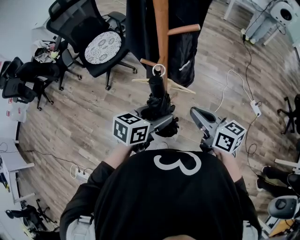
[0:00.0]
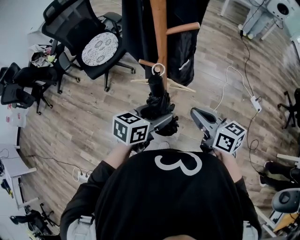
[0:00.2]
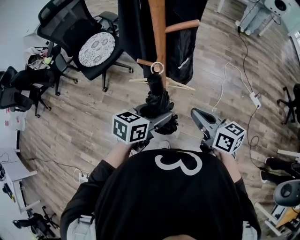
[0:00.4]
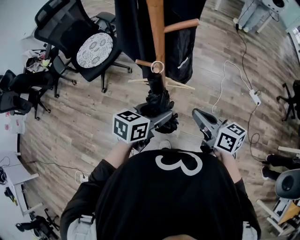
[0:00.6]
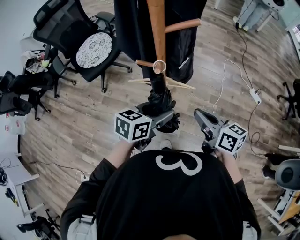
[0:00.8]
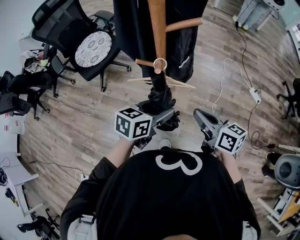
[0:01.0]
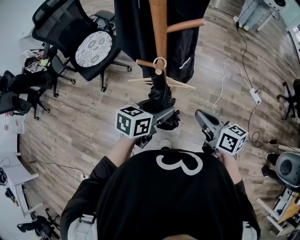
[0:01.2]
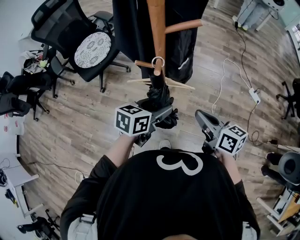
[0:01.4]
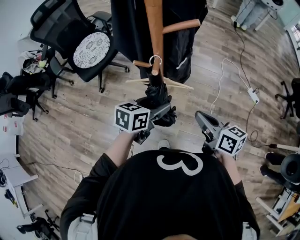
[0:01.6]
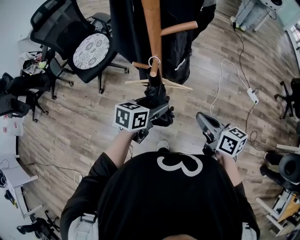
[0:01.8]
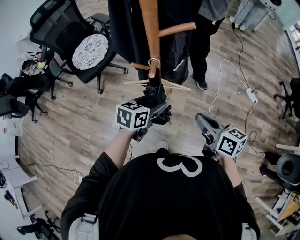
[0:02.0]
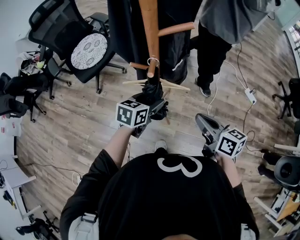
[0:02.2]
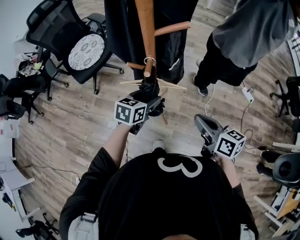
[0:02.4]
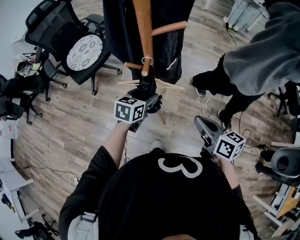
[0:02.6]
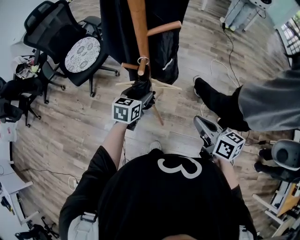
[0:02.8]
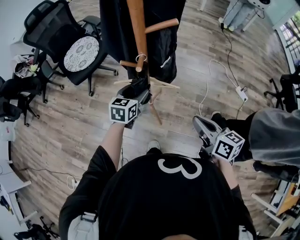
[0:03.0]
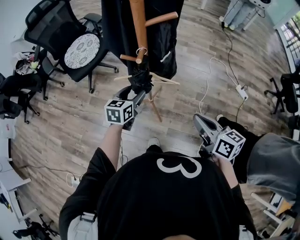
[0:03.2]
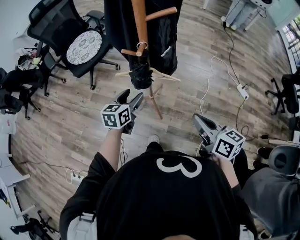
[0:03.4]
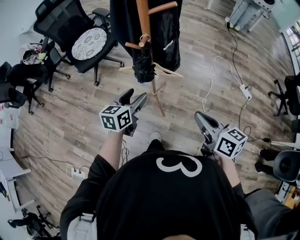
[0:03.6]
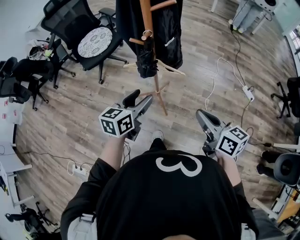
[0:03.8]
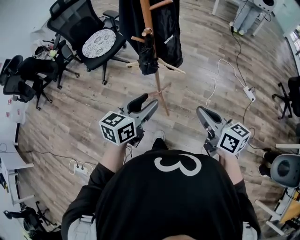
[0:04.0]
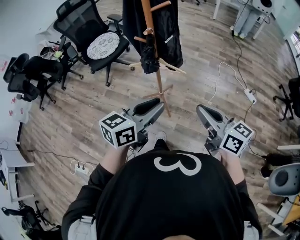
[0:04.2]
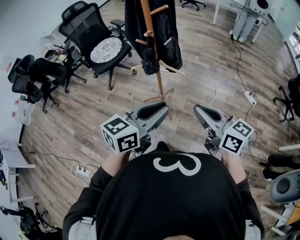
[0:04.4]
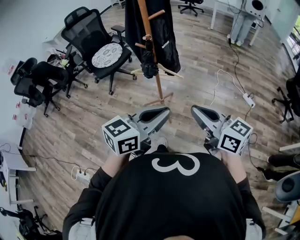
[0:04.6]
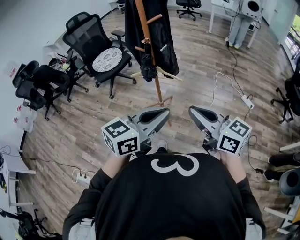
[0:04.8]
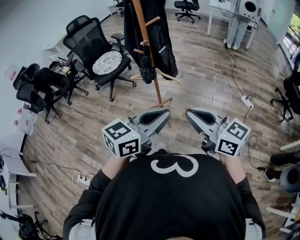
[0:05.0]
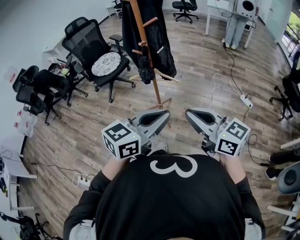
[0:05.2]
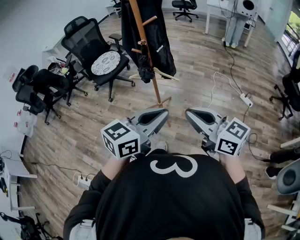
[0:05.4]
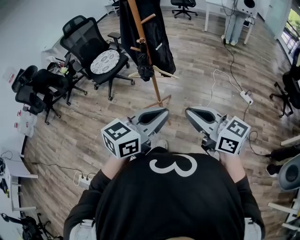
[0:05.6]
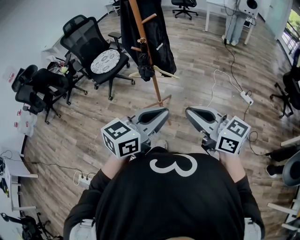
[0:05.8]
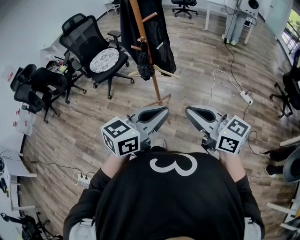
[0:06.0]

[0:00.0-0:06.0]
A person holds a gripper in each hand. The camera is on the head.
0:00.0 to 0:01.6: The right gripper moves downward, roughly 5 cm, while the left gripper goes some 10 cm forward and downward.
0:01.6 to 0:03.0: The right gripper changes place by approximately 5 cm. Meanwhile the left gripper travels forward by approximately 5 cm, and swivels approximately 20 degrees.
0:03.0 to 0:04.4: The left gripper shifts about 40 cm backward and upward, turns by some 30 degrees, and closes. The right gripper goes roughly 25 cm backward and upward, and swivels some 30 degrees.
0:04.4 to 0:06.0: The two grippers go approximately 5 cm backward.

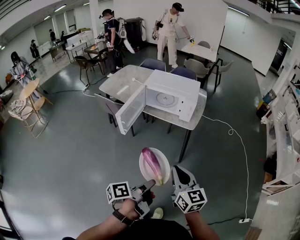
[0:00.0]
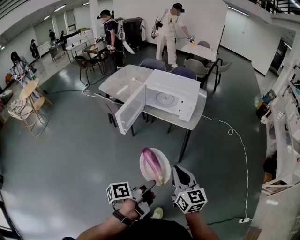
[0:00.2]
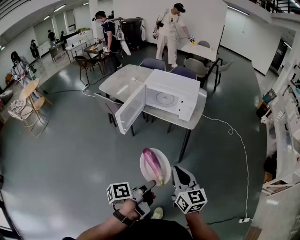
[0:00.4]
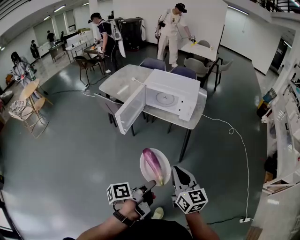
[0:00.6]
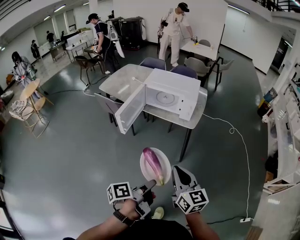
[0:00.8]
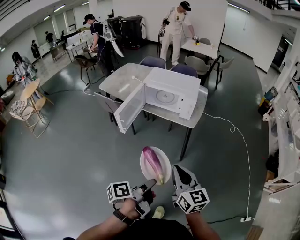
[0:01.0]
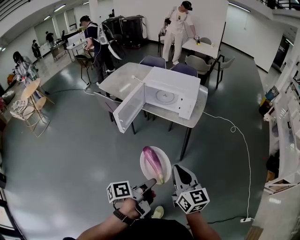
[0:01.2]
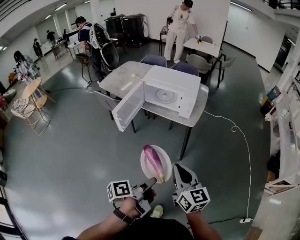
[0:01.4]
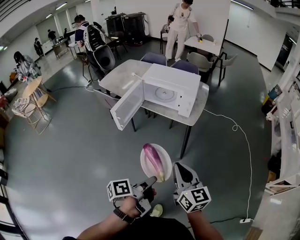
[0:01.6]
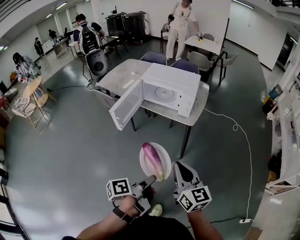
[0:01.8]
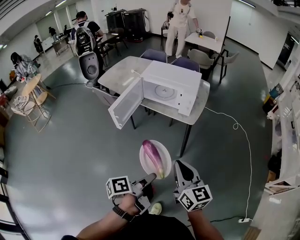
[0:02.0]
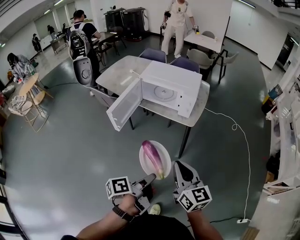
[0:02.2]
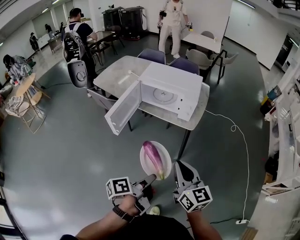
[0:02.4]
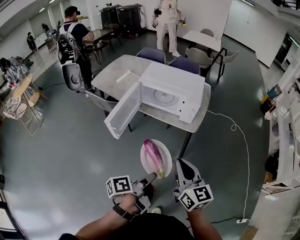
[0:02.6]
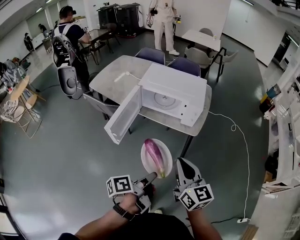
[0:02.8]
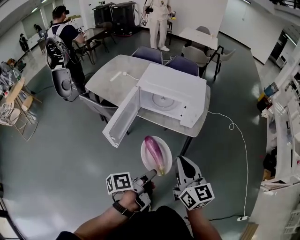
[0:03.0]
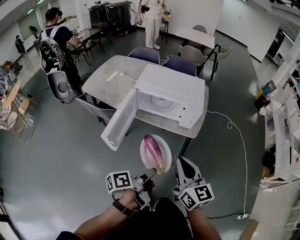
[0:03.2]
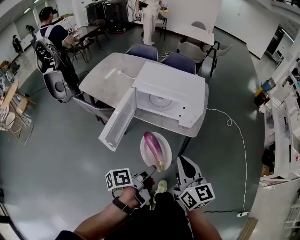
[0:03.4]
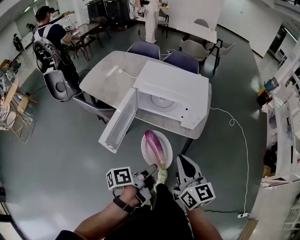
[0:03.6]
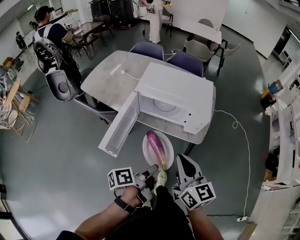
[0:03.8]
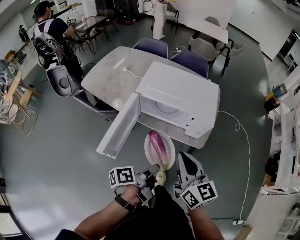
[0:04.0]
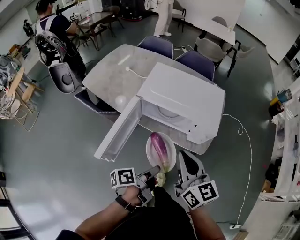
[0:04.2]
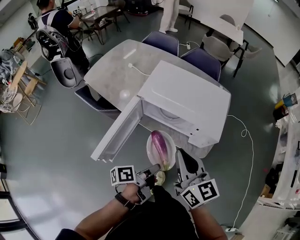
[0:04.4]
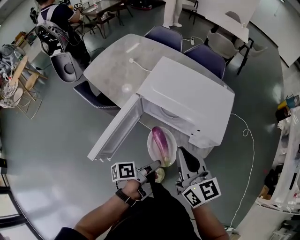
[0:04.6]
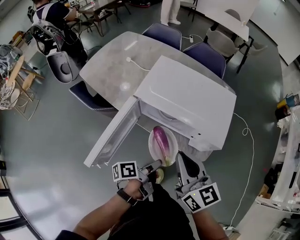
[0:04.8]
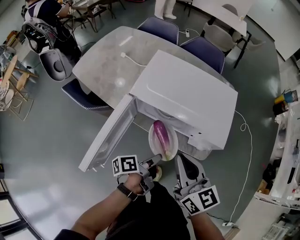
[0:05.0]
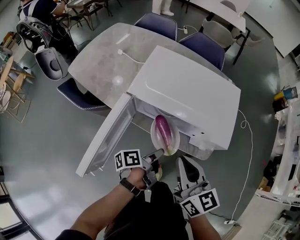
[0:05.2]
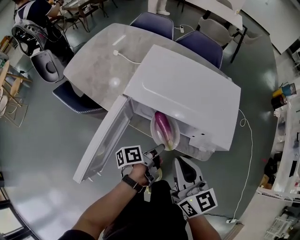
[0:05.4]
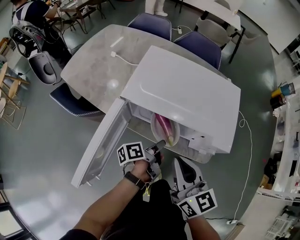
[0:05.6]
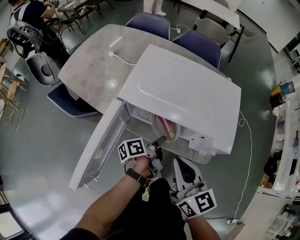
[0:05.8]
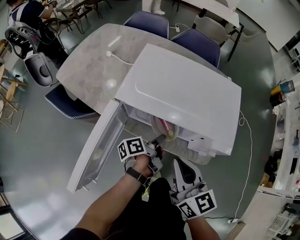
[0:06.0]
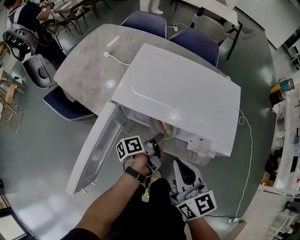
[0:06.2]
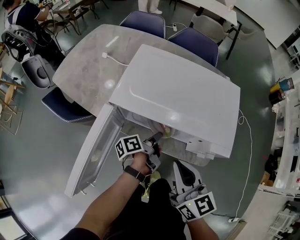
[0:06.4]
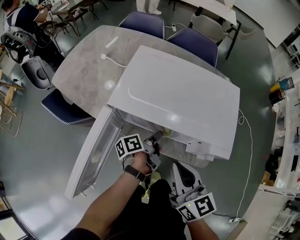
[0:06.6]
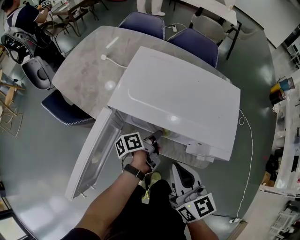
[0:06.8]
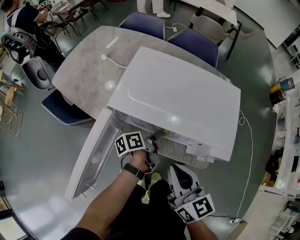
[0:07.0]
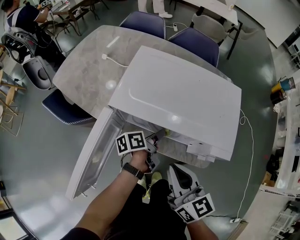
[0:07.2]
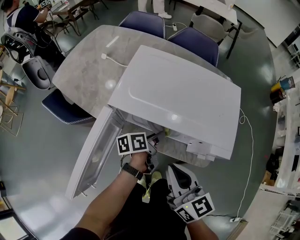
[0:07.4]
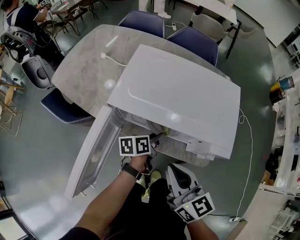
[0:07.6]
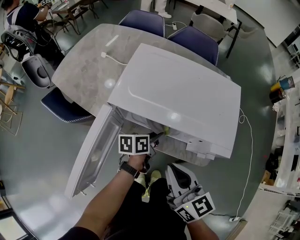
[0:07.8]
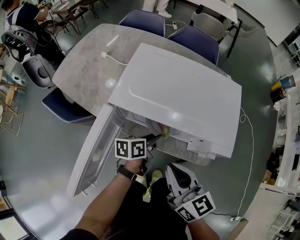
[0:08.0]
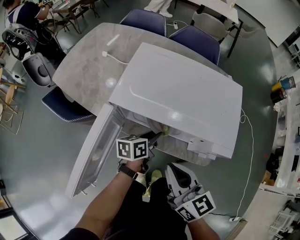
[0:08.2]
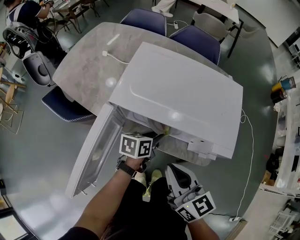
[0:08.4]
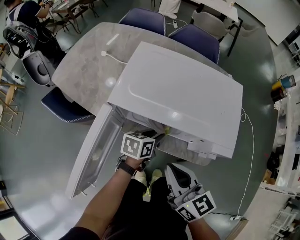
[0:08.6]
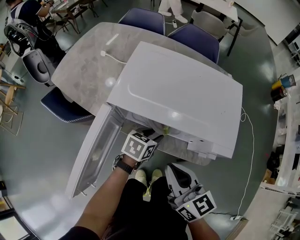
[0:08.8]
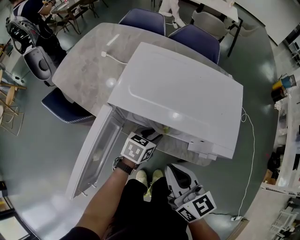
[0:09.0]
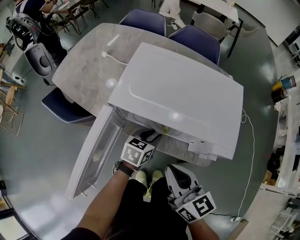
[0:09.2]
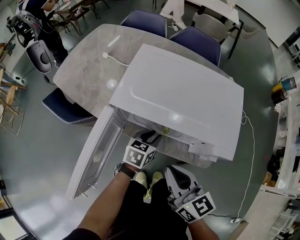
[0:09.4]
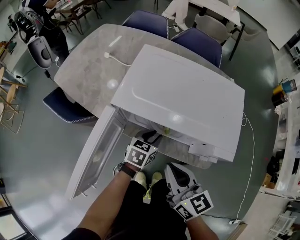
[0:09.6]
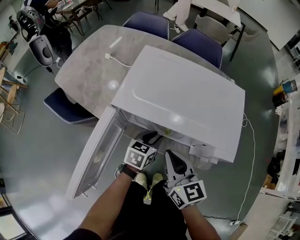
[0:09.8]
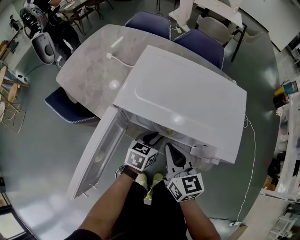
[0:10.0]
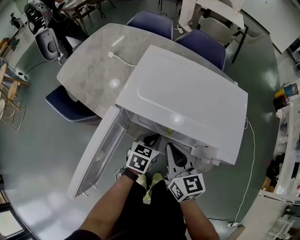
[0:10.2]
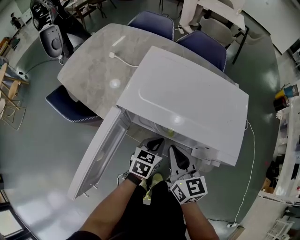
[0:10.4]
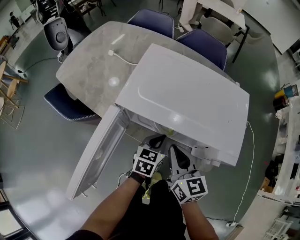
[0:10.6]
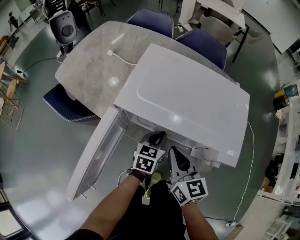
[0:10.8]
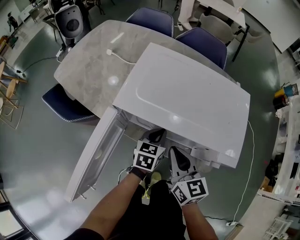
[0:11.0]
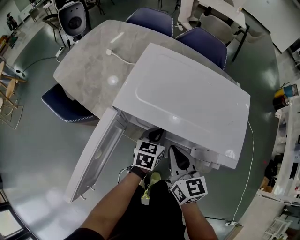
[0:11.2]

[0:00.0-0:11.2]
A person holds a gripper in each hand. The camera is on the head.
0:00.0 to 0:01.6: The right gripper shifts by roughly 5 cm. Meanwhile the left gripper shifts by approximately 5 cm.
0:01.6 to 0:03.2: The grippers both shift forward and to the left by about 25 cm.
0:03.2 to 0:04.8: The grippers both shift forward by roughly 25 cm.
0:04.8 to 0:06.4: The left gripper shifts some 20 cm forward and downward. The right gripper shifts about 10 cm downward.
0:06.4 to 0:08.0: The left gripper swivels approximately 40 degrees.
0:08.0 to 0:09.6: The left gripper changes its angle by approximately 40 degrees.
0:09.6 to 0:11.2: The right gripper heads forward, covering some 5 cm. The left gripper closes its fingers.

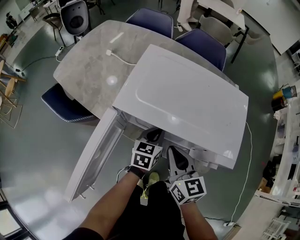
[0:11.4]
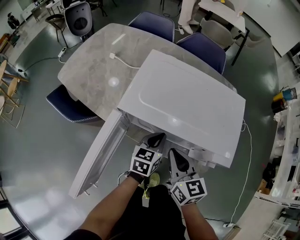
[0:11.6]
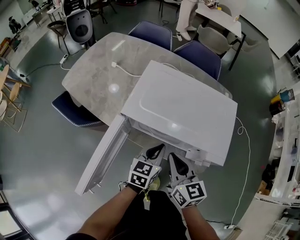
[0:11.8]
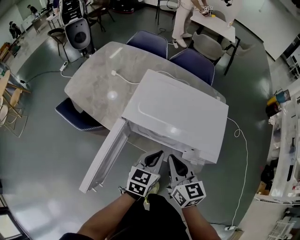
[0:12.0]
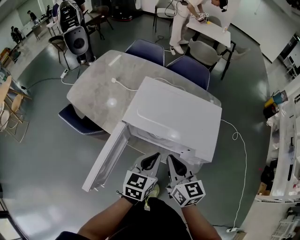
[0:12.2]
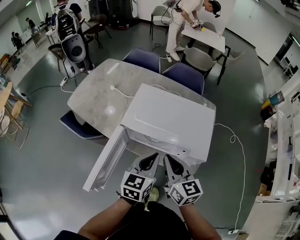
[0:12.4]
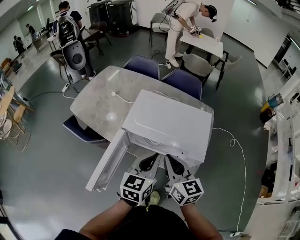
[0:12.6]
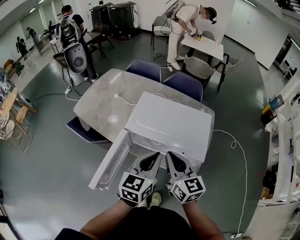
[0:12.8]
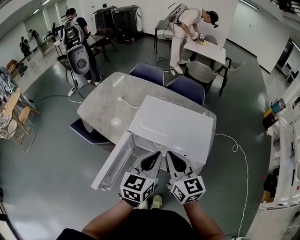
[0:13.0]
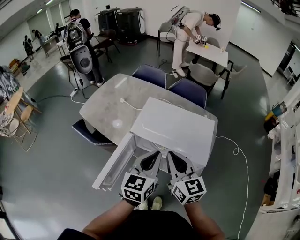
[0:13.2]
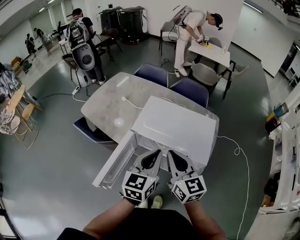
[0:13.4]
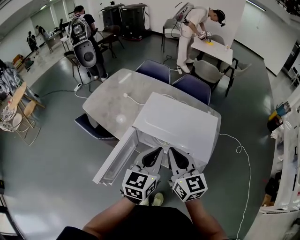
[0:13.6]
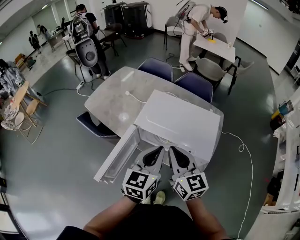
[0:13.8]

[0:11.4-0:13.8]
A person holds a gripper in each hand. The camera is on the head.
0:11.4 to 0:12.6: The left gripper heads upward and backward, covering some 30 cm. Meanwhile the right gripper is displaced upward by about 20 cm.
0:12.6 to 0:13.8: Both grippers travel together upward, some 5 cm.

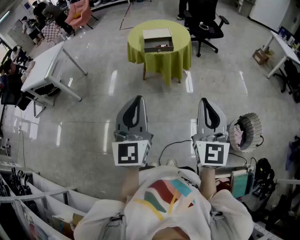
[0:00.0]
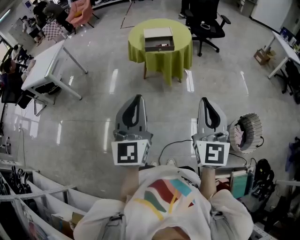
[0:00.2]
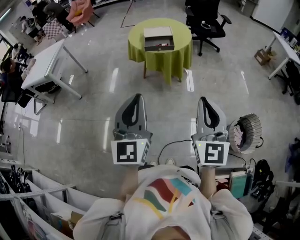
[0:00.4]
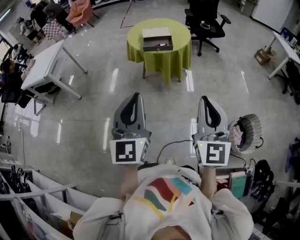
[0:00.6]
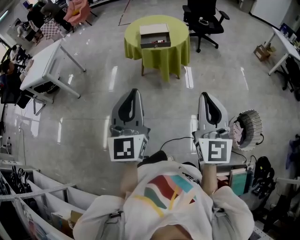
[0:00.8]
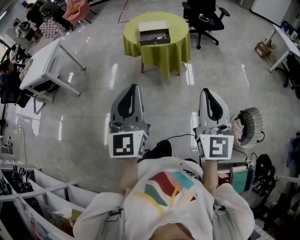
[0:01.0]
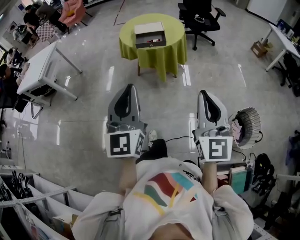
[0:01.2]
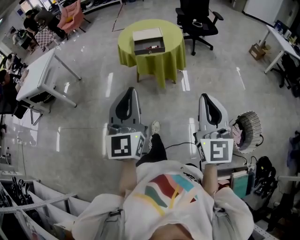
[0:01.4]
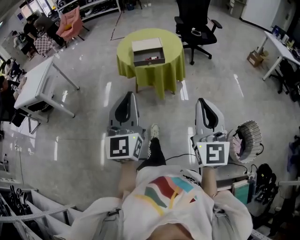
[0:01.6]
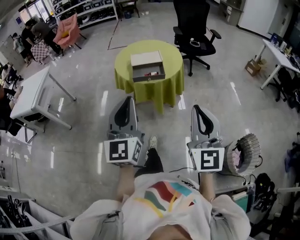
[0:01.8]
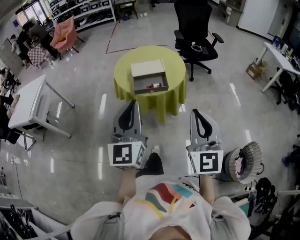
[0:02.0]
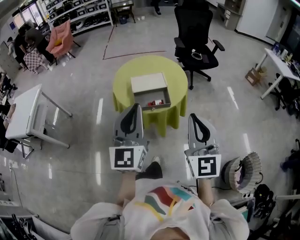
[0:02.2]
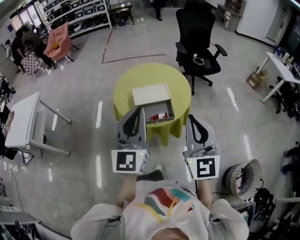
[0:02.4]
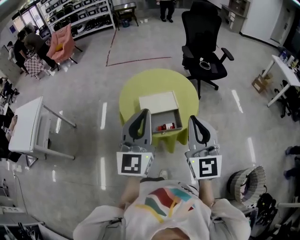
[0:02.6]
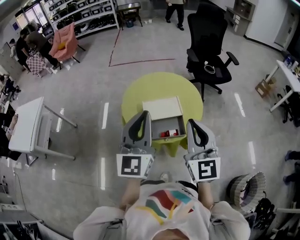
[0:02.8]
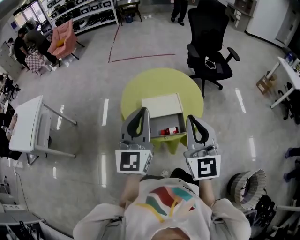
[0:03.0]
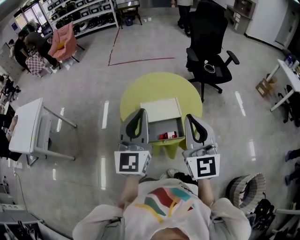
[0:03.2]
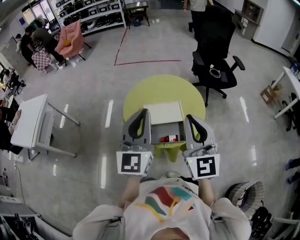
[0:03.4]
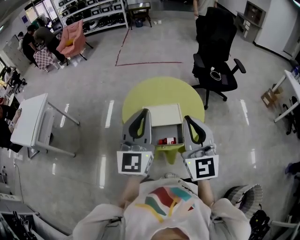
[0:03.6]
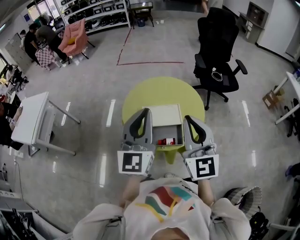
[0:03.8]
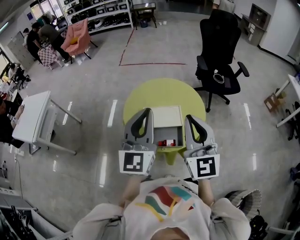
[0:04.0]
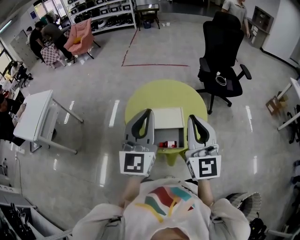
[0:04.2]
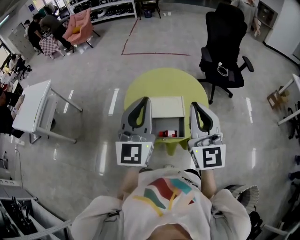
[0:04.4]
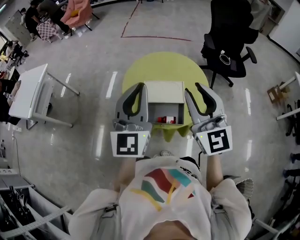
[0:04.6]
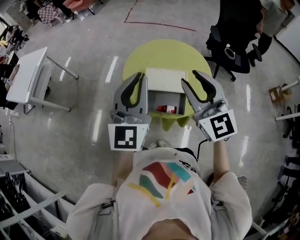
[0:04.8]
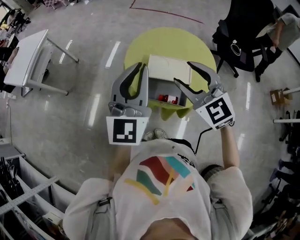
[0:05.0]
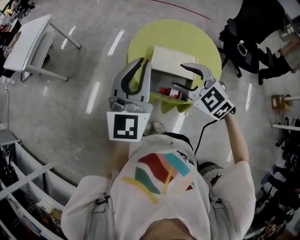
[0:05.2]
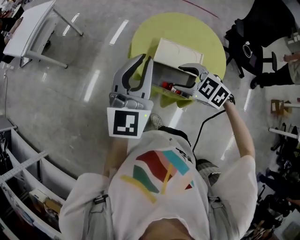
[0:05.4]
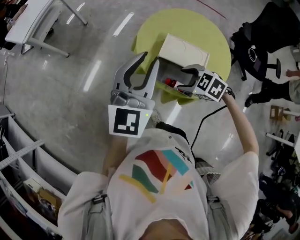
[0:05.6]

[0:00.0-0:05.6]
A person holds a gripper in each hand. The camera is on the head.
0:00.0 to 0:01.4: The right gripper shifts by roughly 5 cm. The left gripper goes some 5 cm forward.
0:01.4 to 0:02.8: The pair of grippers is taken forward, about 50 cm.
0:02.8 to 0:04.2: The right gripper travels forward by roughly 5 cm. The left gripper shifts by roughly 5 cm.
0:04.2 to 0:05.6: The left gripper shifts about 10 cm downward. Meanwhile the right gripper travels downward by some 30 cm, angles its fingers downward, by about 70 degrees, and opens its fingers.
